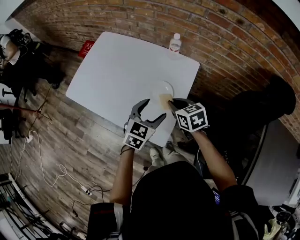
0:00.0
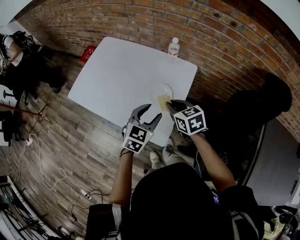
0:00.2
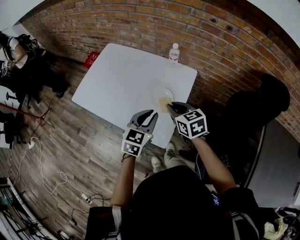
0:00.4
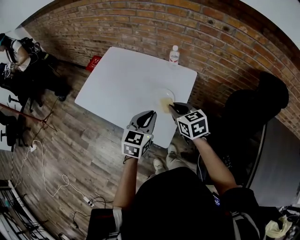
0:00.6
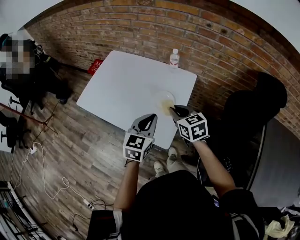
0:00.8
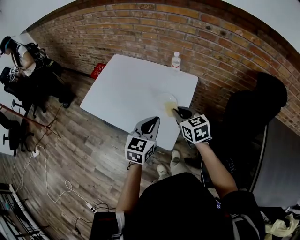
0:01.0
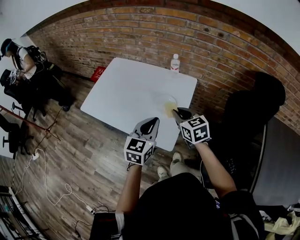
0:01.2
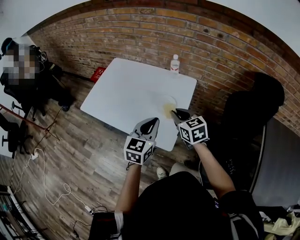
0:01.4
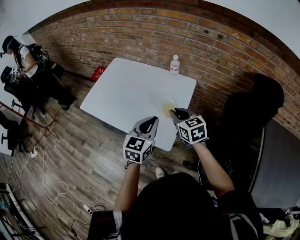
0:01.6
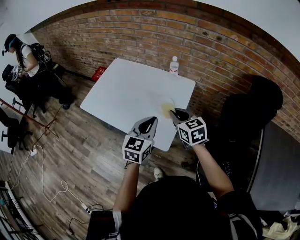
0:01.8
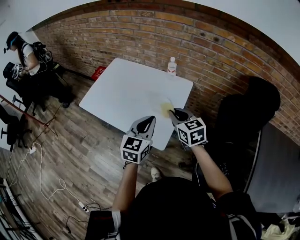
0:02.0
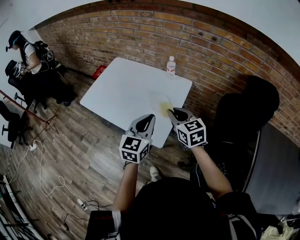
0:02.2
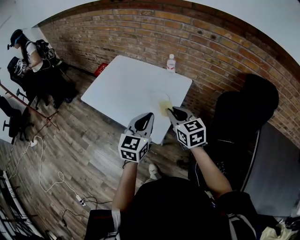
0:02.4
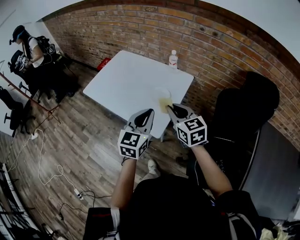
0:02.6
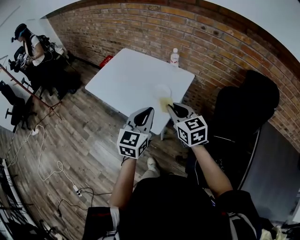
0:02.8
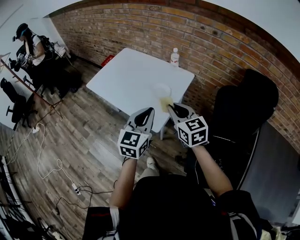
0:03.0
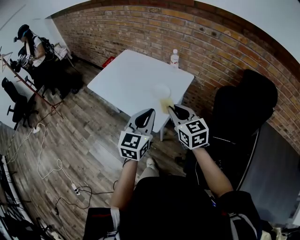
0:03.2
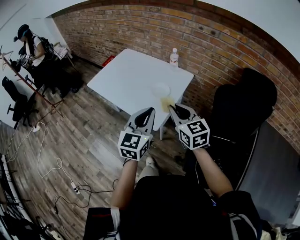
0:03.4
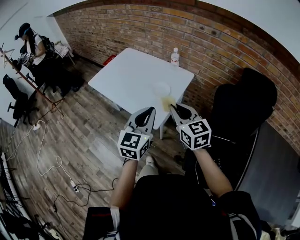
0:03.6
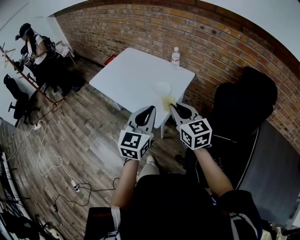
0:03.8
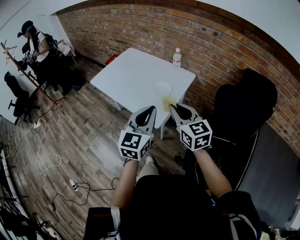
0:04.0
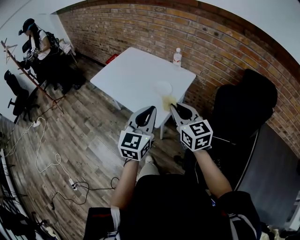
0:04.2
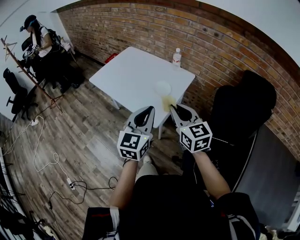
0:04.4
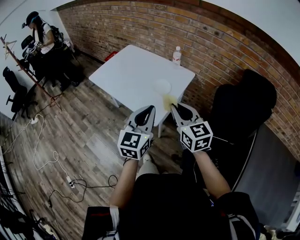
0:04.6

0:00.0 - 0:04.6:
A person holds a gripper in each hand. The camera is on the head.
0:00.0 - 0:01.6: The grippers both shift upward and backward by about 10 cm. The left gripper closes up.
0:01.6 - 0:03.0: Both grippers move backward and upward, roughly 15 cm.
0:03.0 - 0:04.6: The left gripper shifts by approximately 5 cm, while the right gripper goes roughly 5 cm backward.

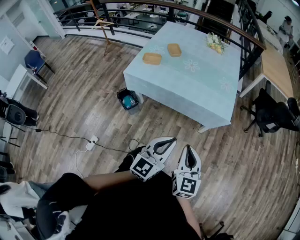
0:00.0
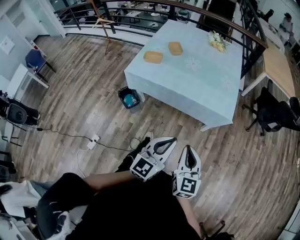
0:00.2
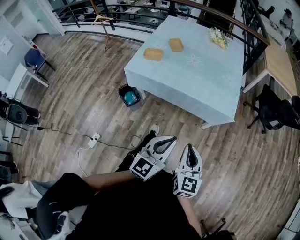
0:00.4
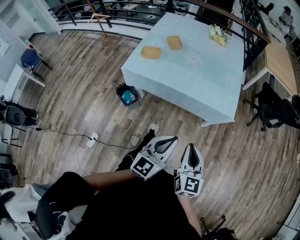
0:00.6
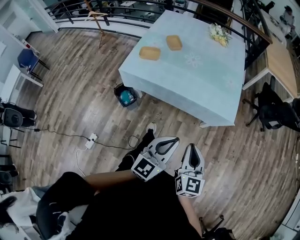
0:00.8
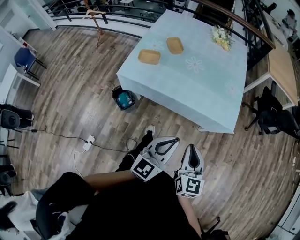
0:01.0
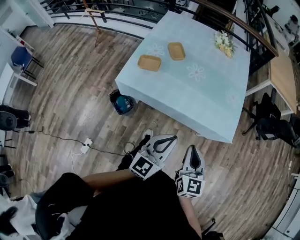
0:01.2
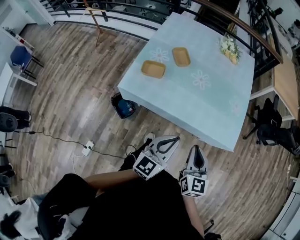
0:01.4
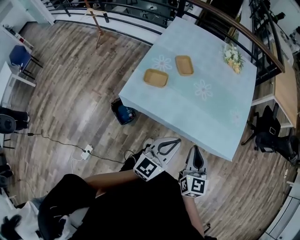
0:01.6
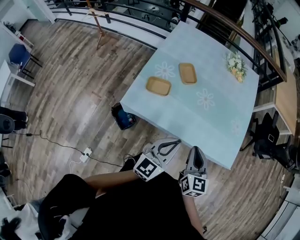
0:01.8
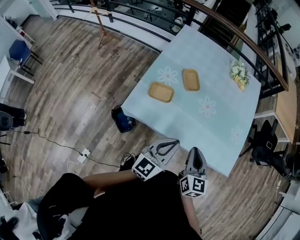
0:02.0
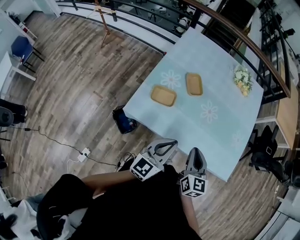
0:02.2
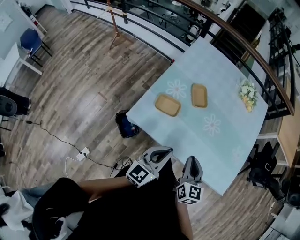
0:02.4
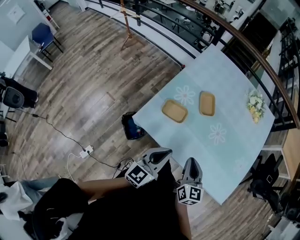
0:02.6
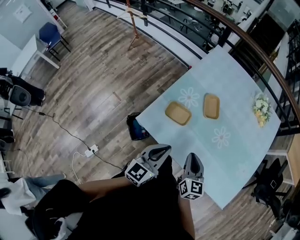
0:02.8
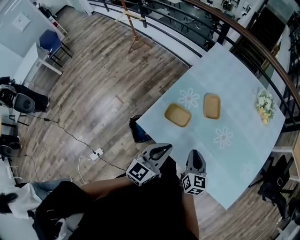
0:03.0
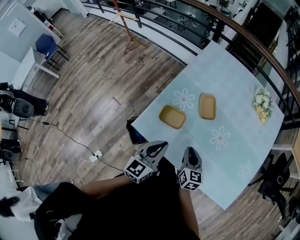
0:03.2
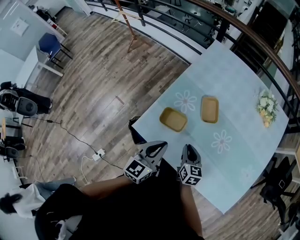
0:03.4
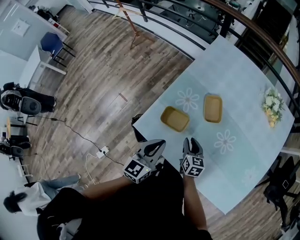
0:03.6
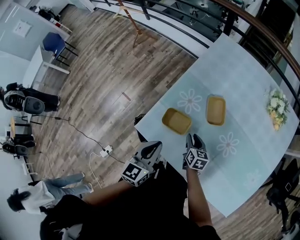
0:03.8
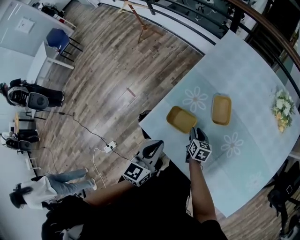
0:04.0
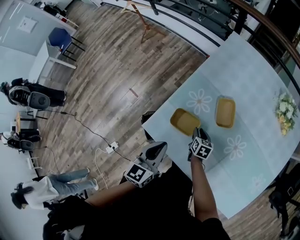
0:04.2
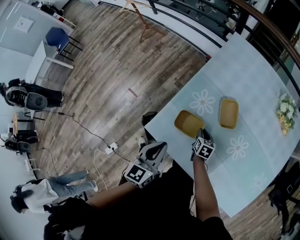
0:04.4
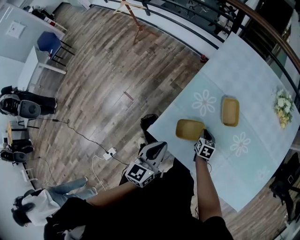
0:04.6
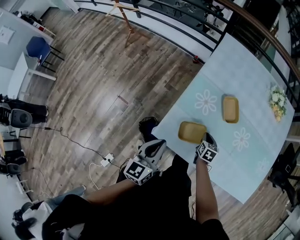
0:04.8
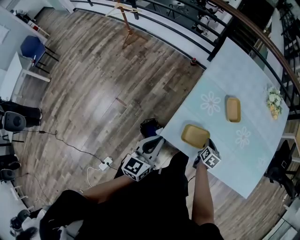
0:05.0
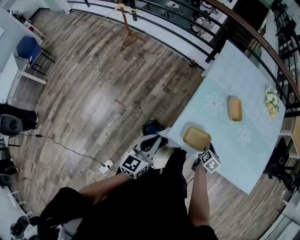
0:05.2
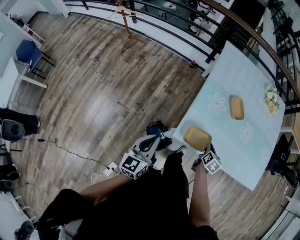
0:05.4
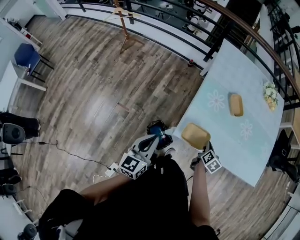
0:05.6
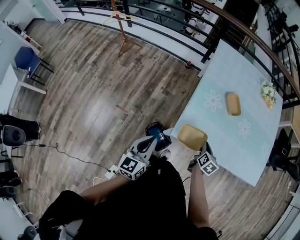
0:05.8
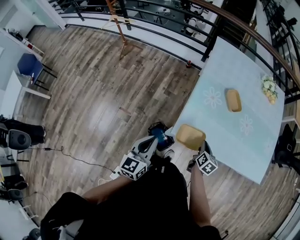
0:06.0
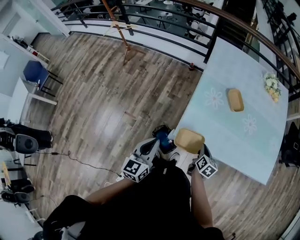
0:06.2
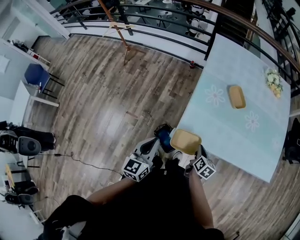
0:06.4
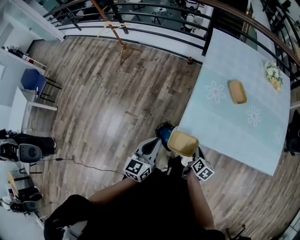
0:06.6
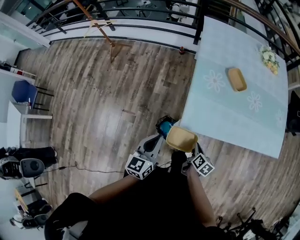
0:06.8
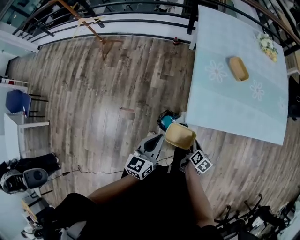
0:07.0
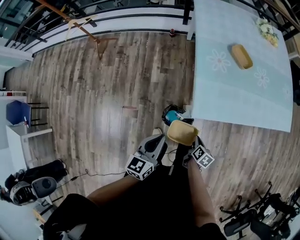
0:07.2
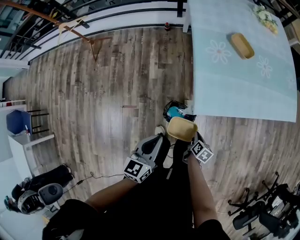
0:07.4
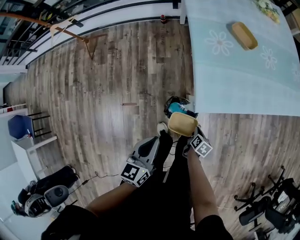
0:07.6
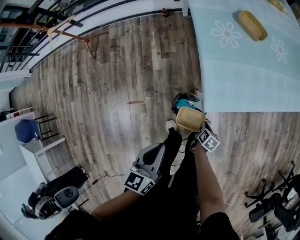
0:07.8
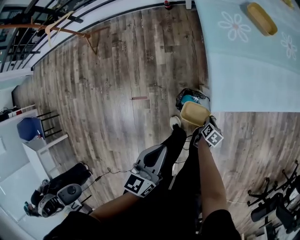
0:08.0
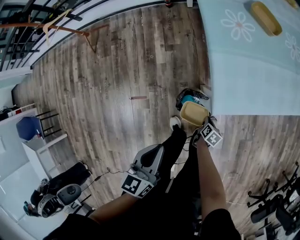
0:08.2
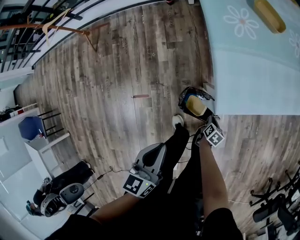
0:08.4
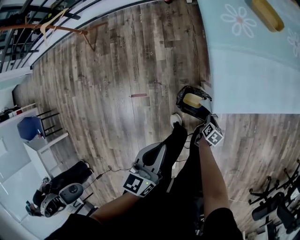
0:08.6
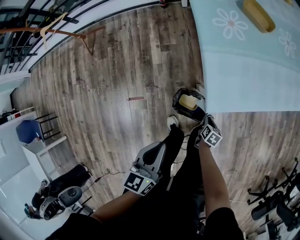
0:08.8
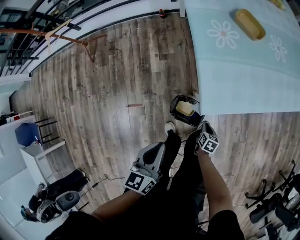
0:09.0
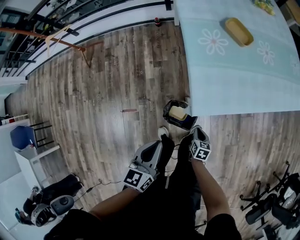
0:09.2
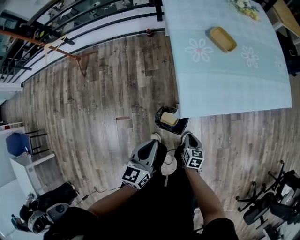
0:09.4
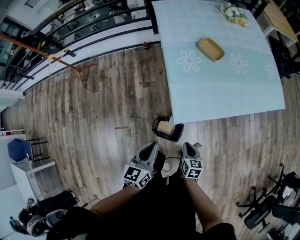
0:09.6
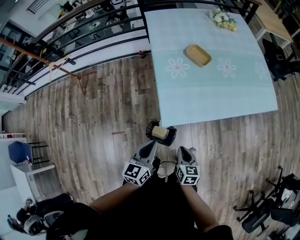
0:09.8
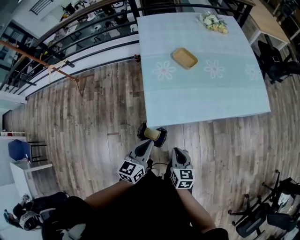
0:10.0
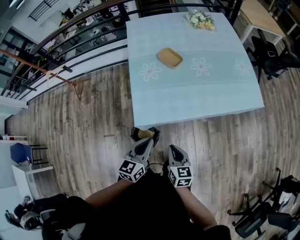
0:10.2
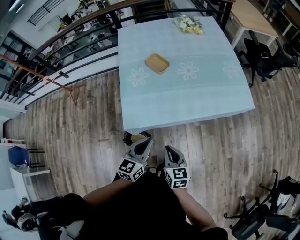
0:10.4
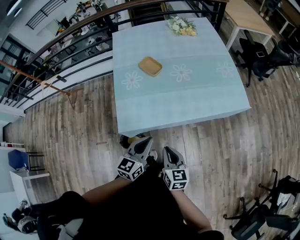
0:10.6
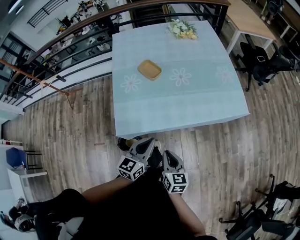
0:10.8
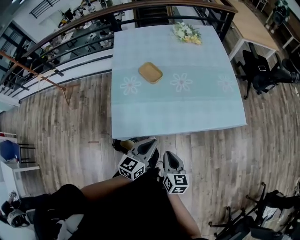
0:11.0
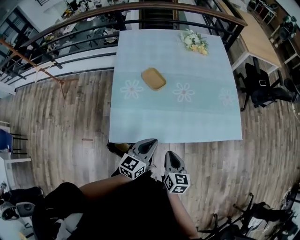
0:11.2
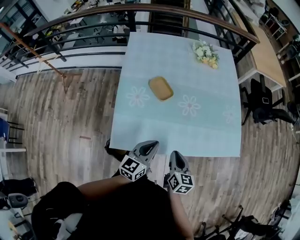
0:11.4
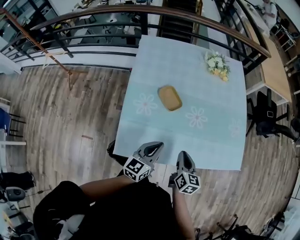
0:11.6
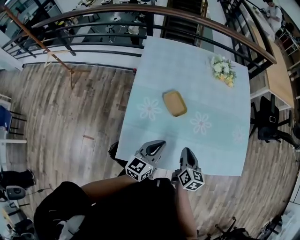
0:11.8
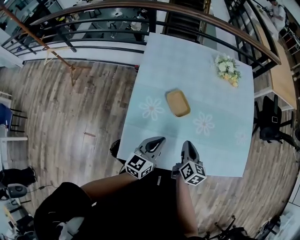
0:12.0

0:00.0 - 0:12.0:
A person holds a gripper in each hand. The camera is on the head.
0:00.0 - 0:01.6: Both grippers travel together forward and to the left, roughly 35 cm.
0:01.6 - 0:03.0: The right gripper heads forward, to the left and downward, covering roughly 25 cm, and rotates some 20 degrees; the left gripper moves forward and to the left, some 25 cm.
0:03.0 - 0:04.4: The left gripper heads forward, to the left and downward, covering approximately 10 cm. The right gripper heads downward and forward, covering approximately 30 cm, and turns by approximately 30 degrees.
0:04.4 - 0:06.0: The left gripper ends up some 30 cm from where it was. Meanwhile the right gripper moves about 25 cm, and swivels approximately 30 degrees.
0:06.0 - 0:07.6: The right gripper is displaced downward, backward and to the left by some 35 cm, and swivels approximately 30 degrees. The left gripper travels downward and to the left by roughly 15 cm, and rotates some 30 degrees.
0:07.6 - 0:09.0: The right gripper shifts some 5 cm downward.
0:09.0 - 0:10.4: The left gripper is displaced to the right by roughly 35 cm. The right gripper travels upward and to the right by some 50 cm, and points its fingers approximately 30 degrees further upward.
0:10.4 - 0:12.0: The two grippers go roughly 30 cm forward.

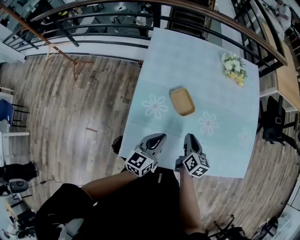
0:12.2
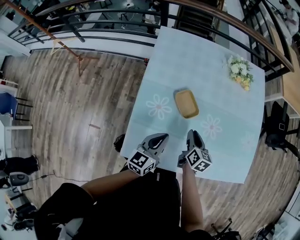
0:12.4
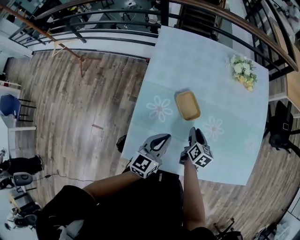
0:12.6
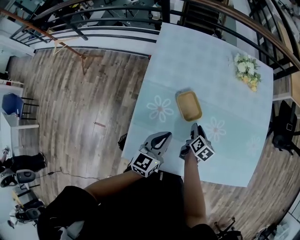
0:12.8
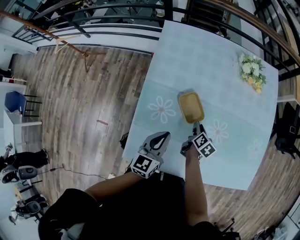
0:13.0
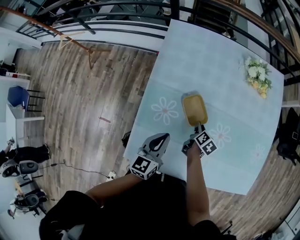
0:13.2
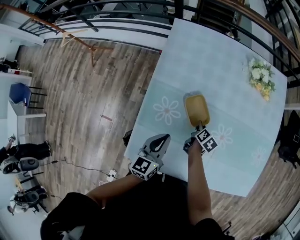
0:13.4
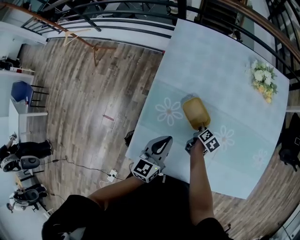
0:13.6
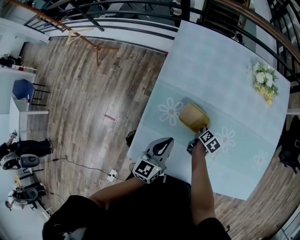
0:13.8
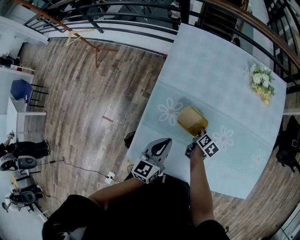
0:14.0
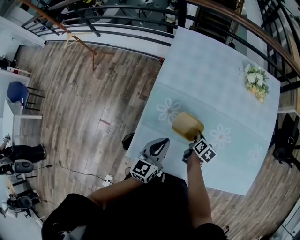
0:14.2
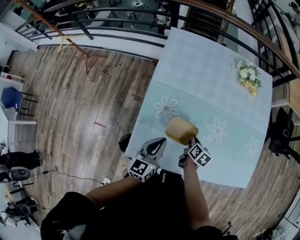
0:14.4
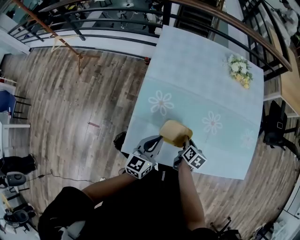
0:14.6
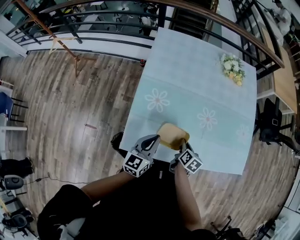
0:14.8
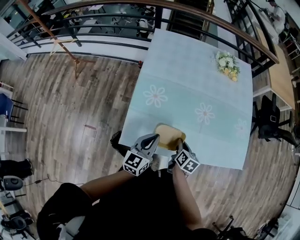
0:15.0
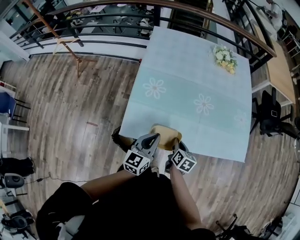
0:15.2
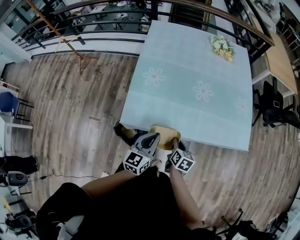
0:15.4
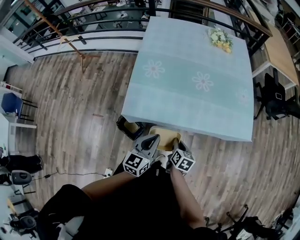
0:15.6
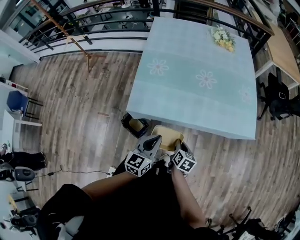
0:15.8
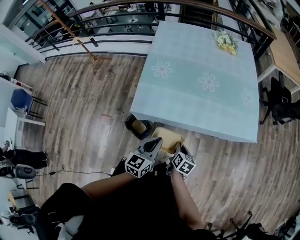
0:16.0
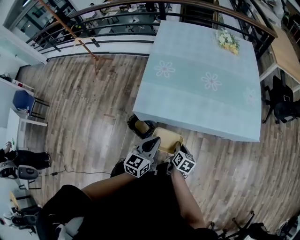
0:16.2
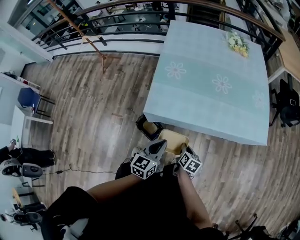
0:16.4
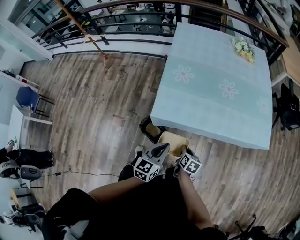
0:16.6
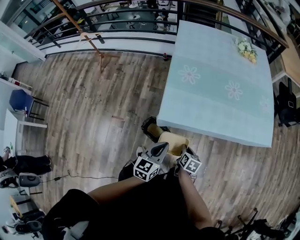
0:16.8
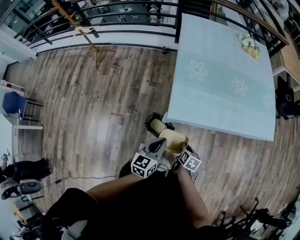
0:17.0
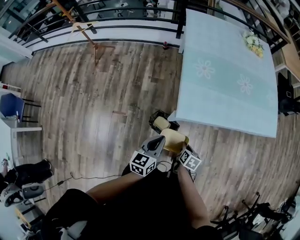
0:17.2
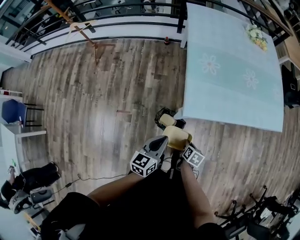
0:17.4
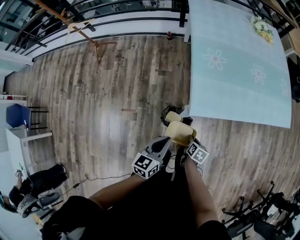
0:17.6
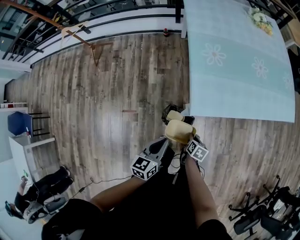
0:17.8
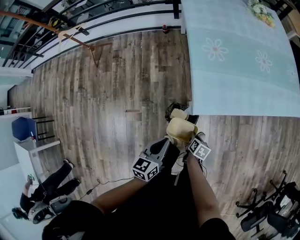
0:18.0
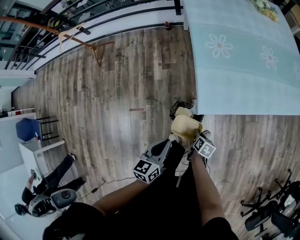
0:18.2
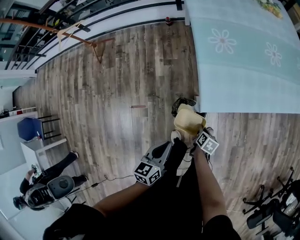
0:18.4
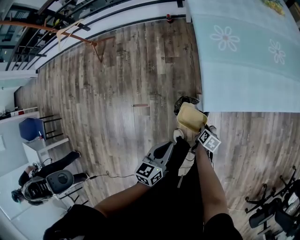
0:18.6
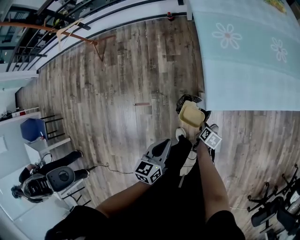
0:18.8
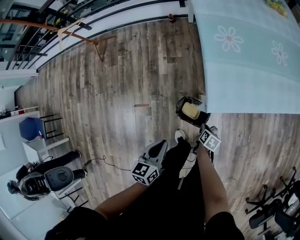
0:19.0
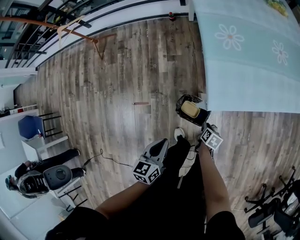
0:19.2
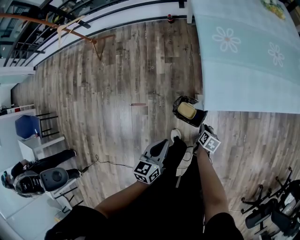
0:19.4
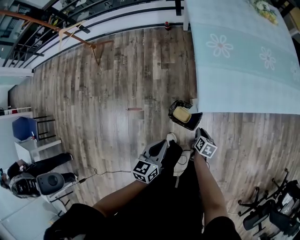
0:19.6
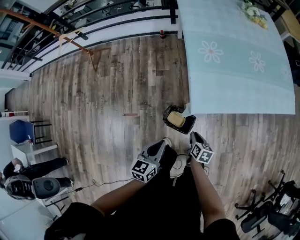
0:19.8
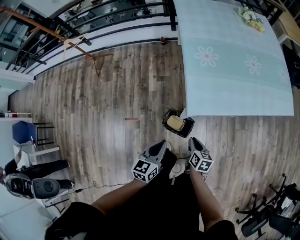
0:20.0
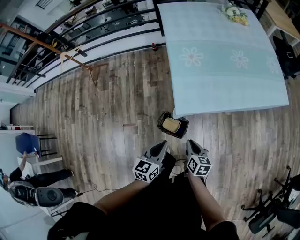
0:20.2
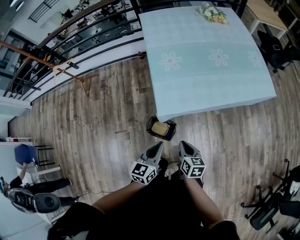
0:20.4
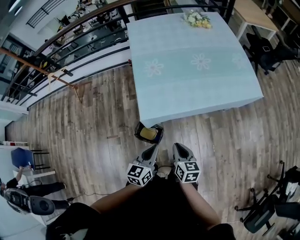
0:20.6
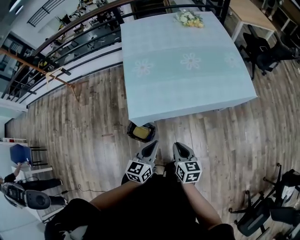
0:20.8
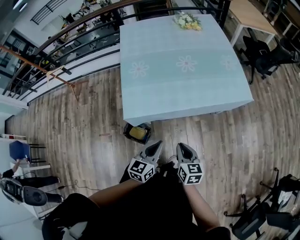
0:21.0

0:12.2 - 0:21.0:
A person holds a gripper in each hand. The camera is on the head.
0:12.2 - 0:13.6: The left gripper is displaced forward by roughly 5 cm, while the right gripper travels downward and forward by about 25 cm, and turns by about 30 degrees.
0:13.6 - 0:15.2: The right gripper goes roughly 35 cm backward and upward, and changes its angle by some 20 degrees. Meanwhile the left gripper is displaced backward by some 20 cm.
0:15.2 - 0:16.6: Both grippers travel together backward, approximately 20 cm.
0:16.6 - 0:18.0: The left gripper is displaced to the left by about 30 cm, while the right gripper goes some 30 cm to the left and downward, and turns by some 20 degrees.
0:18.0 - 0:19.6: The right gripper reaches some 10 cm downward, then returns.
0:19.6 - 0:21.0: The right gripper shifts approximately 40 cm to the right and upward, and rotates about 30 degrees. The left gripper heads to the right, covering about 40 cm.
